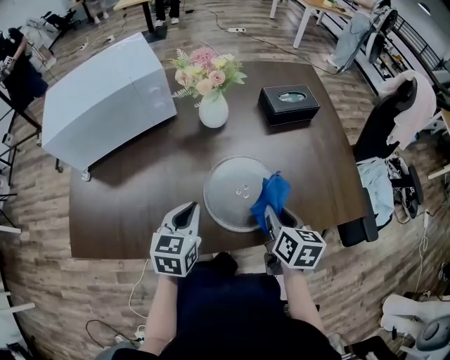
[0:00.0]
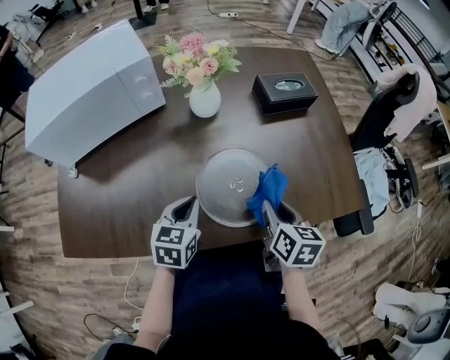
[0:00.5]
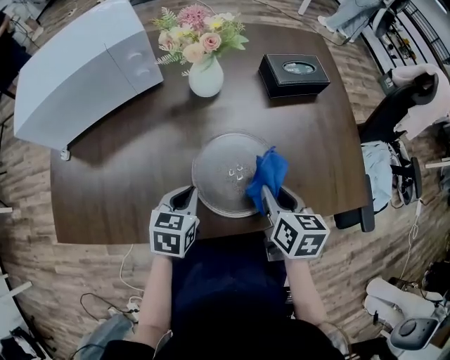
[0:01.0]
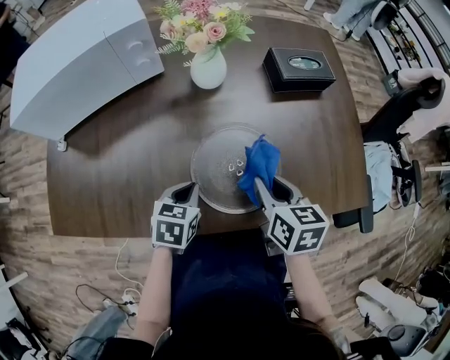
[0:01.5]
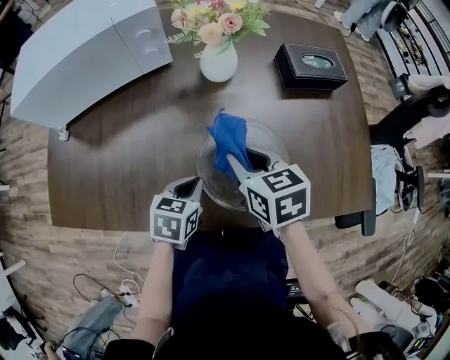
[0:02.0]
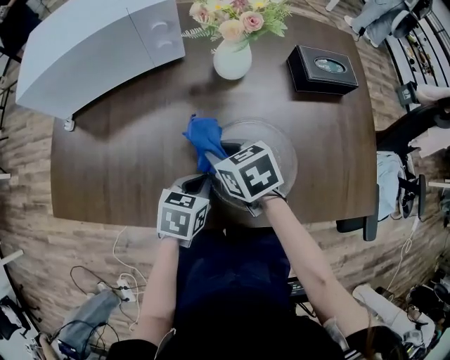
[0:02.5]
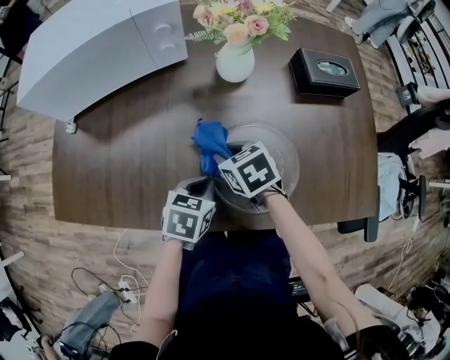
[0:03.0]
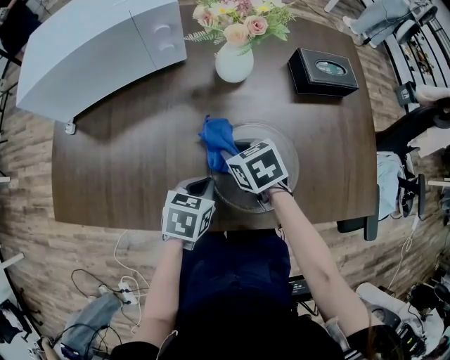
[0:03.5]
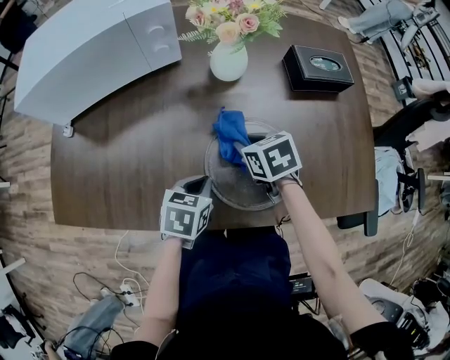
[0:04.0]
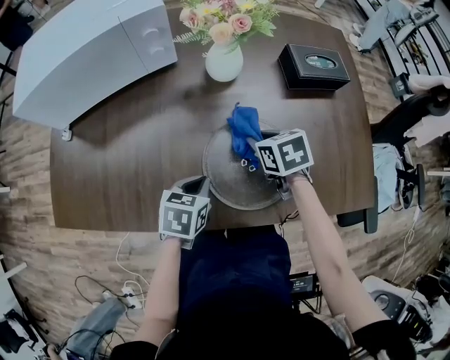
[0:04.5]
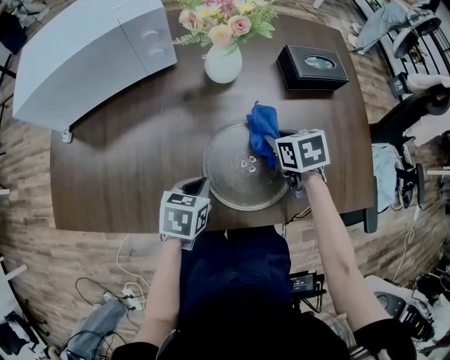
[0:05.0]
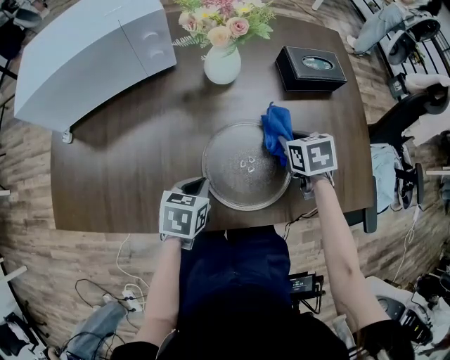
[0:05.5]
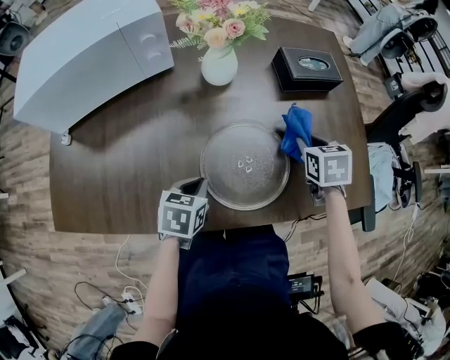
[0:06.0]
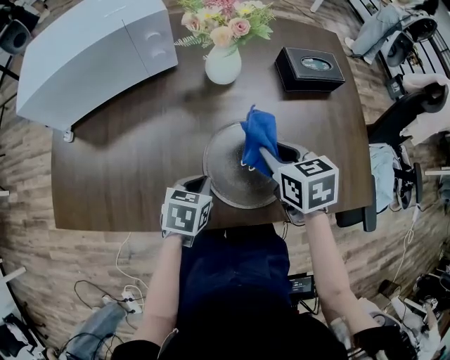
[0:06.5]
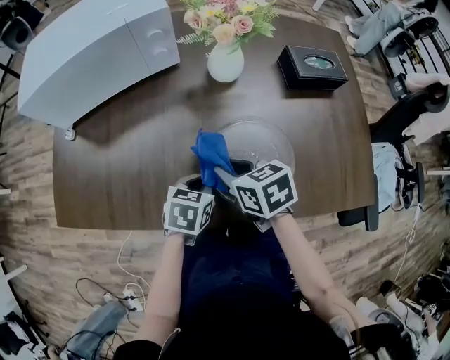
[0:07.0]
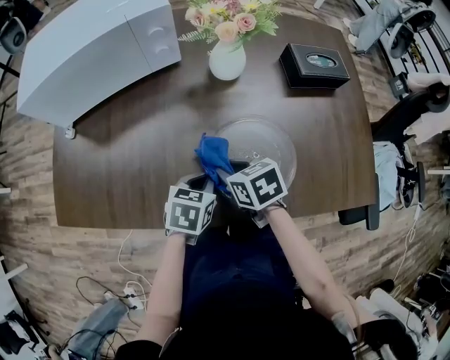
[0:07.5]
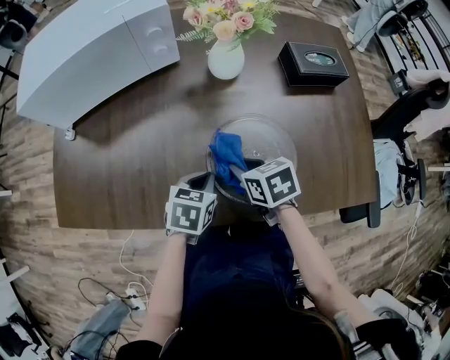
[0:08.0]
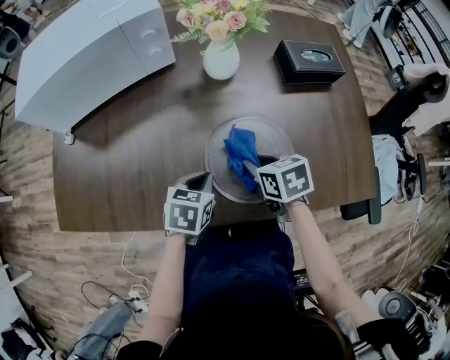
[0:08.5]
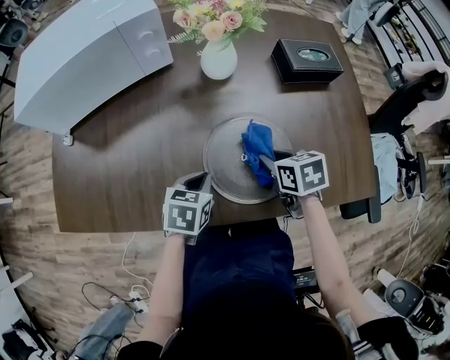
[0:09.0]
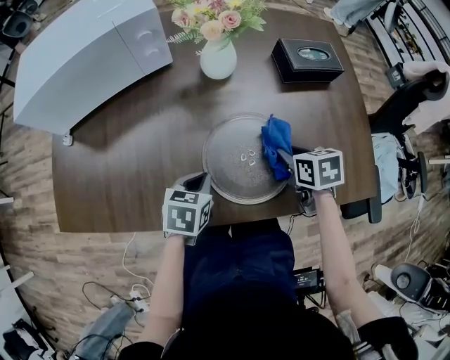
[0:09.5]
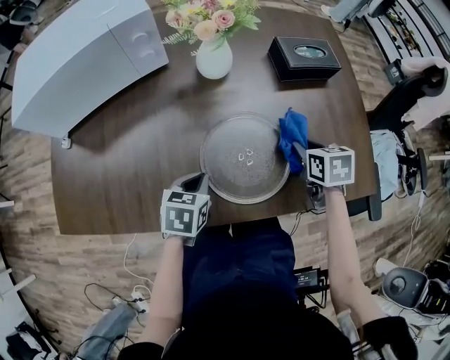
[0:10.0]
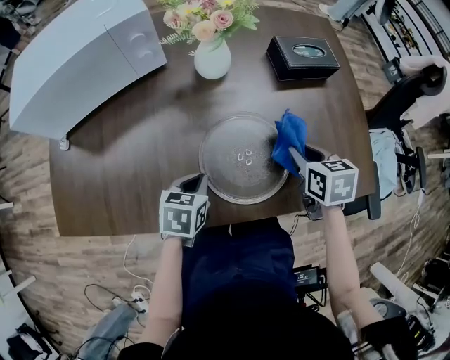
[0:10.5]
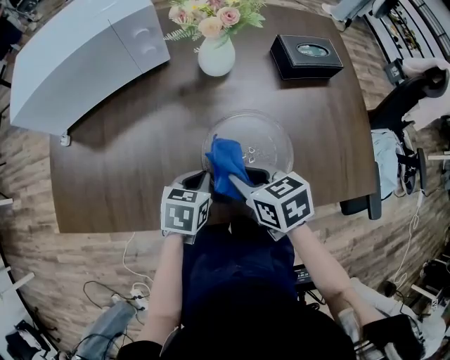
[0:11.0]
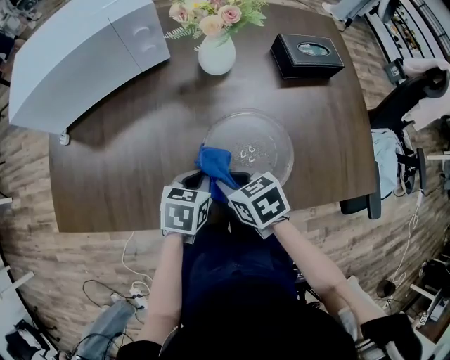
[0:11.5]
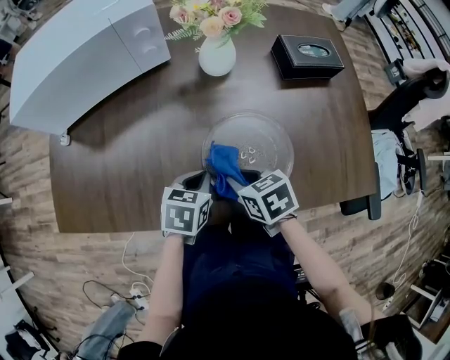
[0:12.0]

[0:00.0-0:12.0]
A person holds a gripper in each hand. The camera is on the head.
0:00.0 to 0:02.0: The right gripper is displaced to the left and forward by some 15 cm, and swivels approximately 40 degrees. Meanwhile the left gripper is displaced downward by some 10 cm, and changes its angle by roughly 20 degrees.
0:02.0 to 0:04.0: The right gripper goes roughly 10 cm downward.
0:04.0 to 0:06.0: The right gripper goes some 20 cm to the right, and swivels about 20 degrees.
0:06.0 to 0:08.0: The right gripper ends up roughly 25 cm from where it was, and turns by approximately 30 degrees.
0:08.0 to 0:10.0: The right gripper is displaced to the right by approximately 20 cm, and swivels approximately 20 degrees.
0:10.0 to 0:12.0: The right gripper heads to the left, covering some 20 cm, and rotates some 20 degrees.

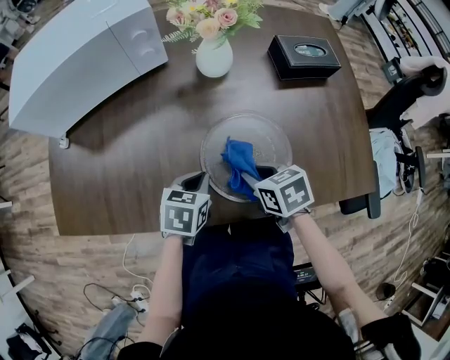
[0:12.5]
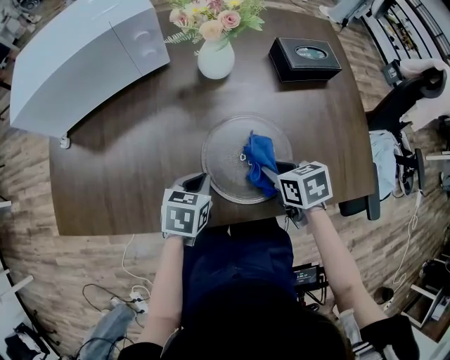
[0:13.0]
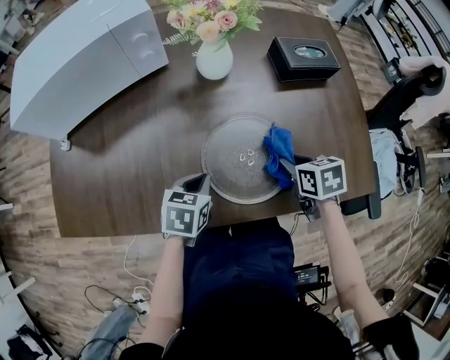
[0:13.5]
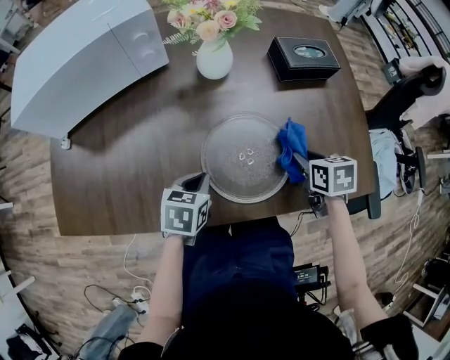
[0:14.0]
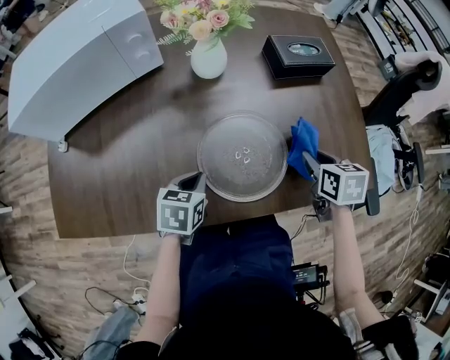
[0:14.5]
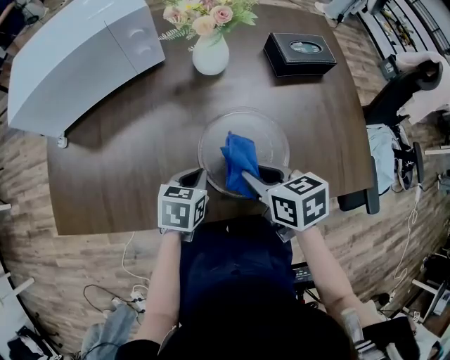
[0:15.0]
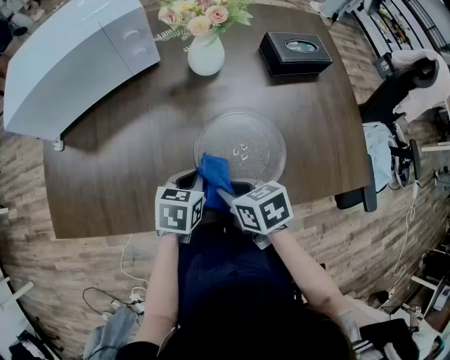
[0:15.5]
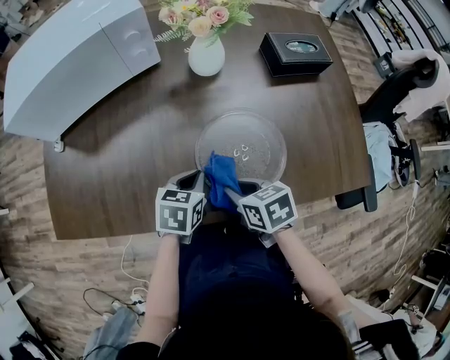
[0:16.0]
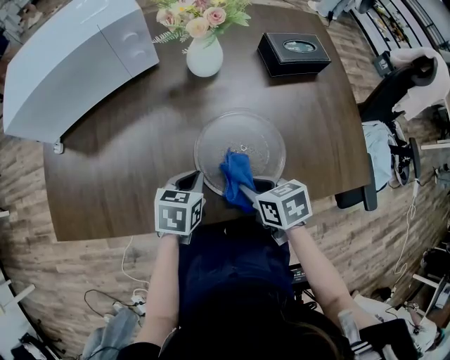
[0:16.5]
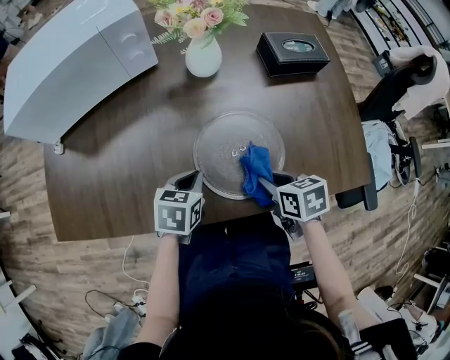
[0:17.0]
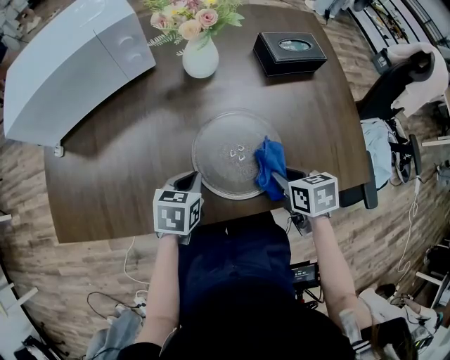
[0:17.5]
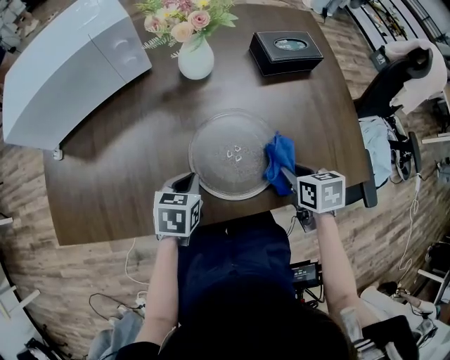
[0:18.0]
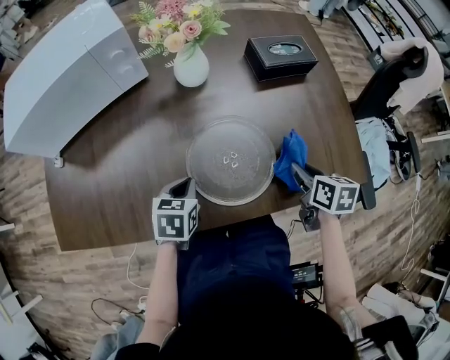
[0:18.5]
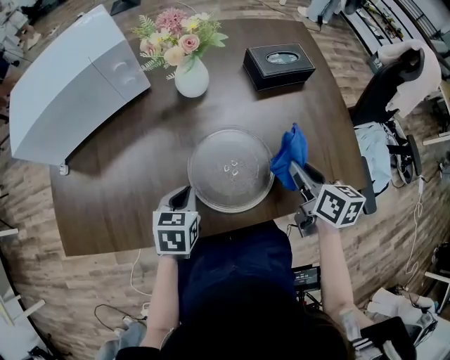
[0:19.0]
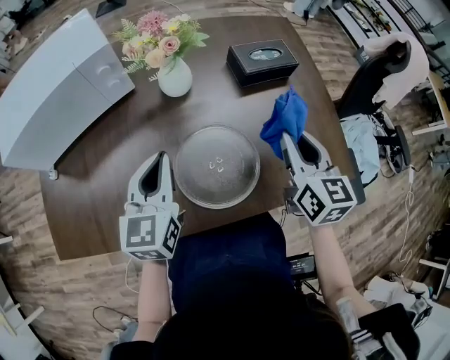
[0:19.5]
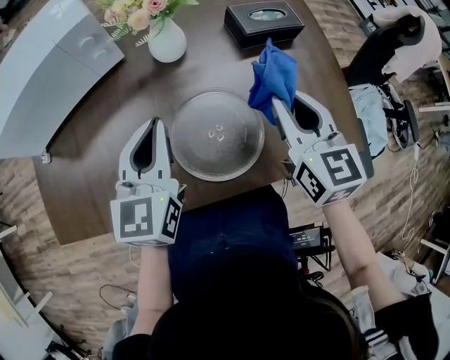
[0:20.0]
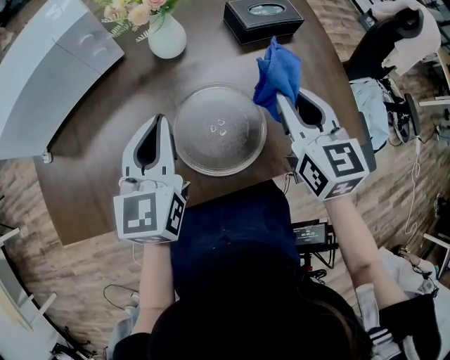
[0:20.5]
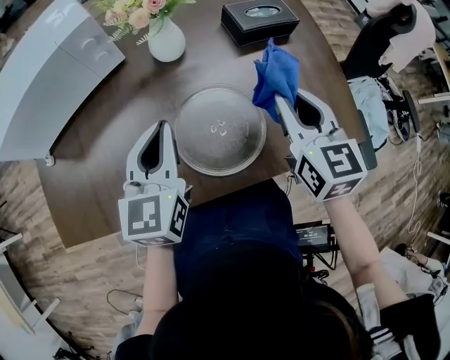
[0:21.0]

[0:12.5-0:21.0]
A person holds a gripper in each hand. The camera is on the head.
0:12.5 to 0:14.5: The right gripper is displaced to the right by approximately 20 cm, and turns by approximately 30 degrees.
0:14.5 to 0:16.5: The right gripper is displaced to the left by approximately 15 cm, and rotates some 20 degrees.
0:16.5 to 0:19.0: The right gripper heads to the right, upward and forward, covering approximately 20 cm, and turns by roughly 40 degrees.
0:19.0 to 0:21.0: The left gripper travels upward by roughly 15 cm, and points its fingers roughly 30 degrees further upward; the right gripper shifts roughly 10 cm upward, and swivels roughly 30 degrees.

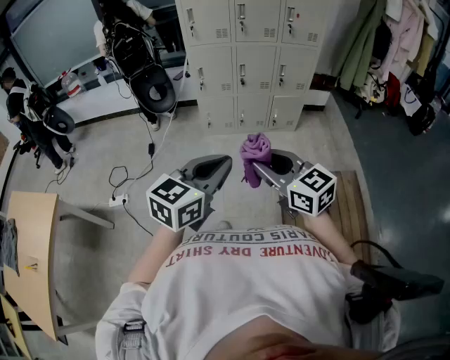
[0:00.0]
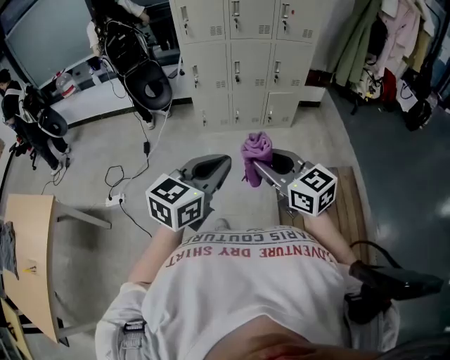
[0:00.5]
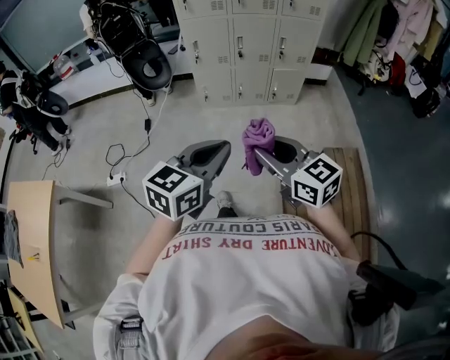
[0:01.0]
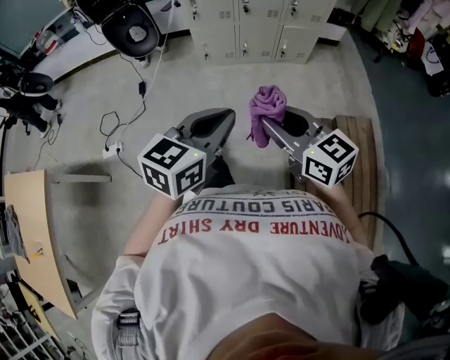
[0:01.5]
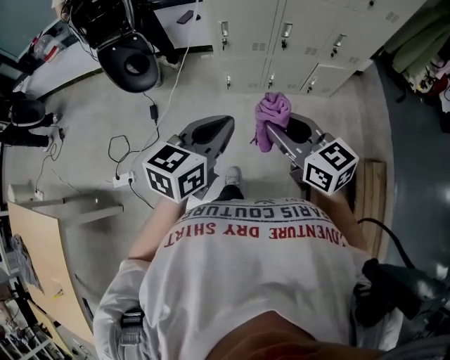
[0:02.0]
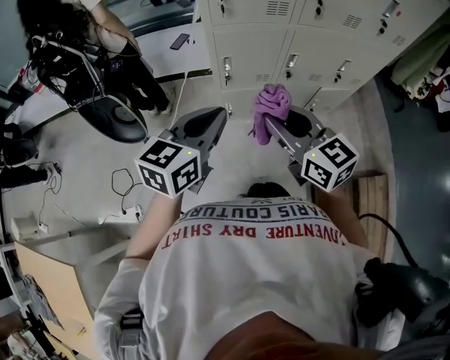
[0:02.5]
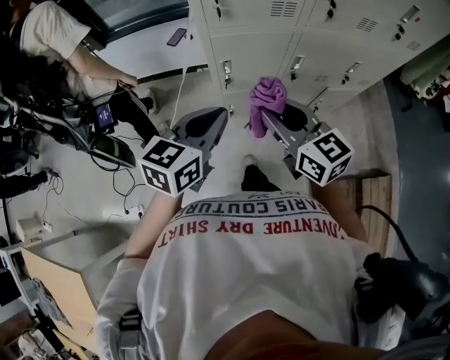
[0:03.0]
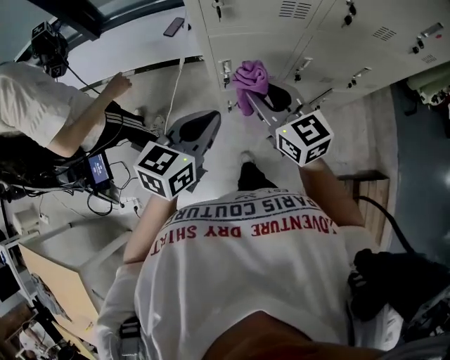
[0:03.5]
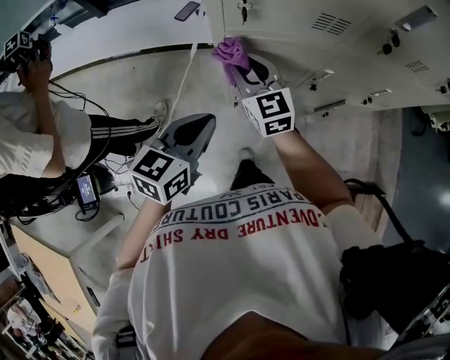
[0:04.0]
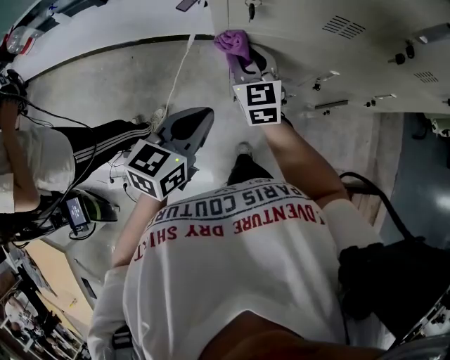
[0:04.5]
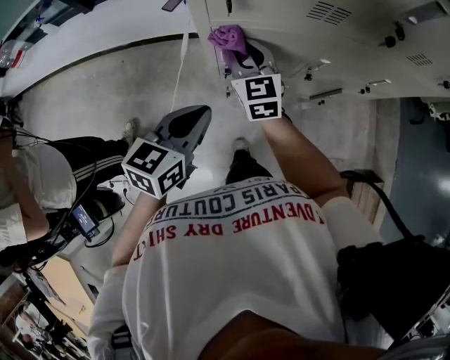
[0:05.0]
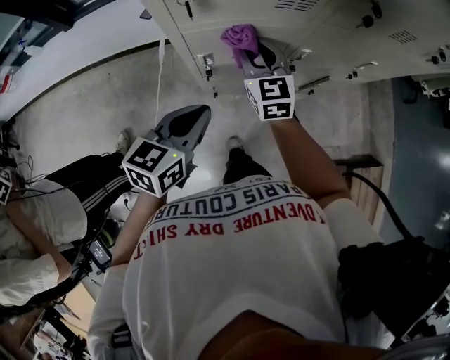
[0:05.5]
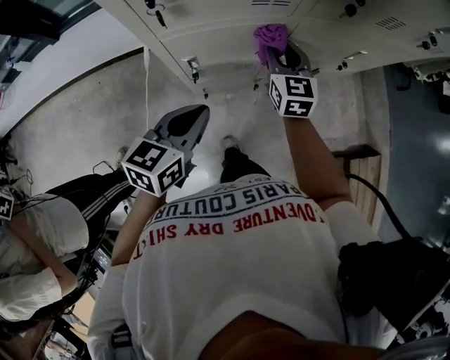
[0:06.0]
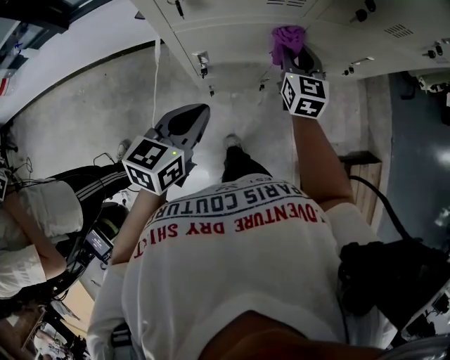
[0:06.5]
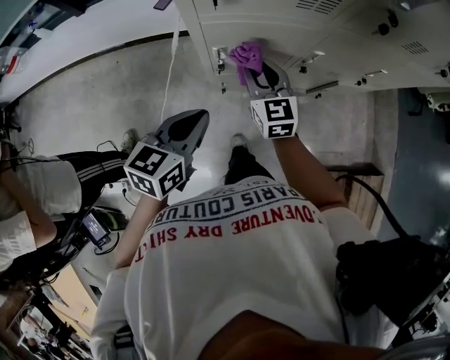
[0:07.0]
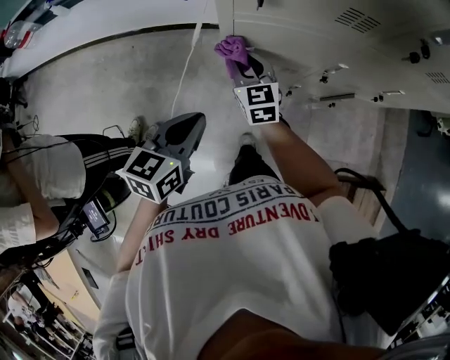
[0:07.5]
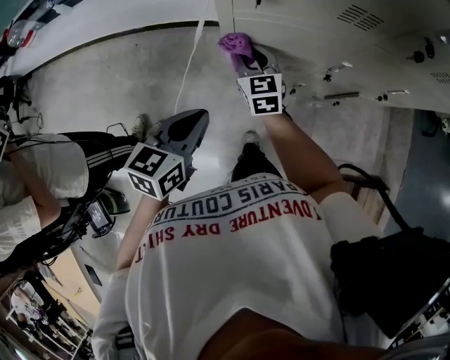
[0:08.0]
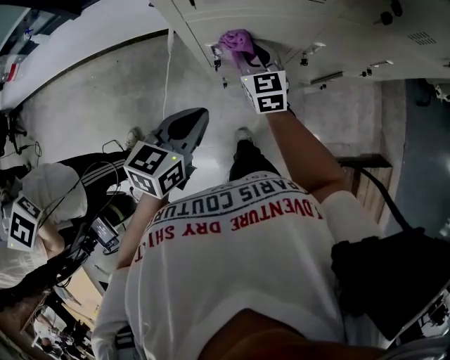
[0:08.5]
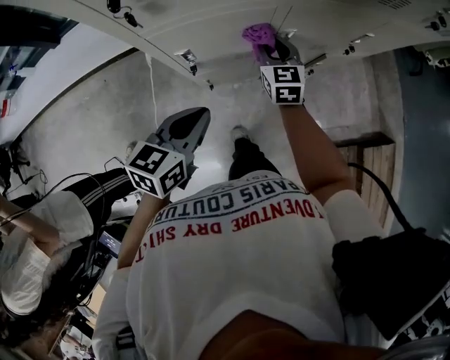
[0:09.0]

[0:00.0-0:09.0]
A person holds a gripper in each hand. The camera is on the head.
0:00.0 to 0:02.0: The two grippers travel together, forward, approximately 40 cm.
0:02.0 to 0:04.5: The grippers both shift forward by approximately 50 cm. The right gripper swivels approximately 30 degrees.
0:04.5 to 0:07.0: The right gripper travels to the right by approximately 10 cm.
0:07.0 to 0:09.0: The right gripper travels to the right, forward and downward by approximately 15 cm. Meanwhile the left gripper moves to the right, about 5 cm.
